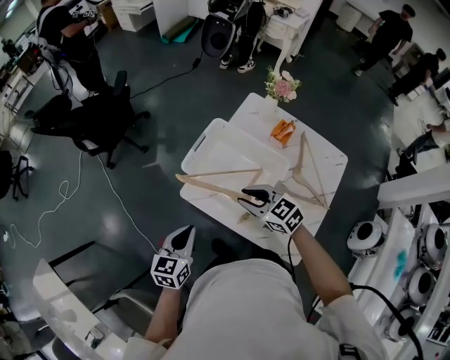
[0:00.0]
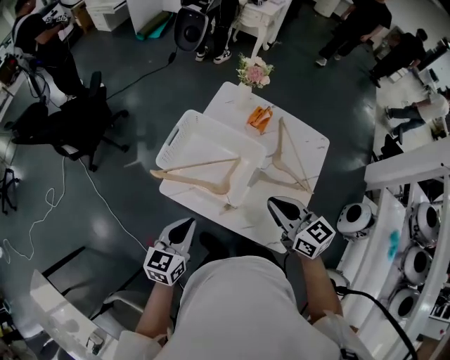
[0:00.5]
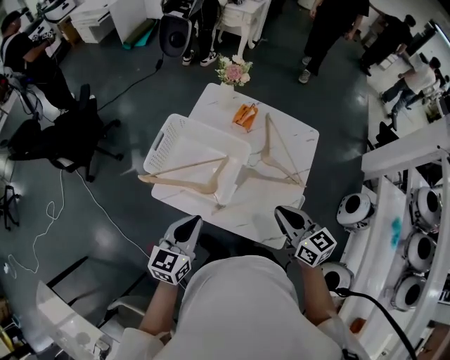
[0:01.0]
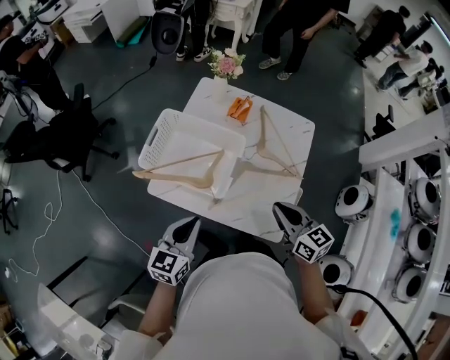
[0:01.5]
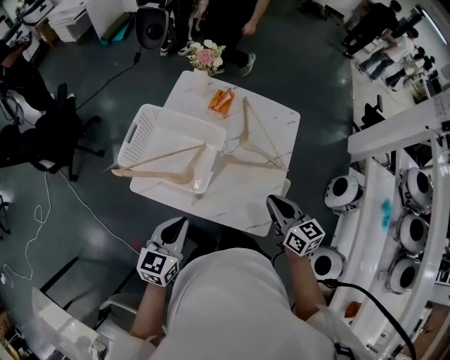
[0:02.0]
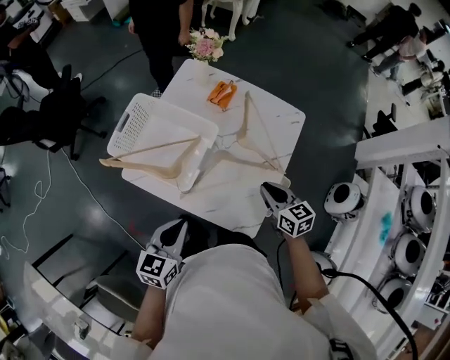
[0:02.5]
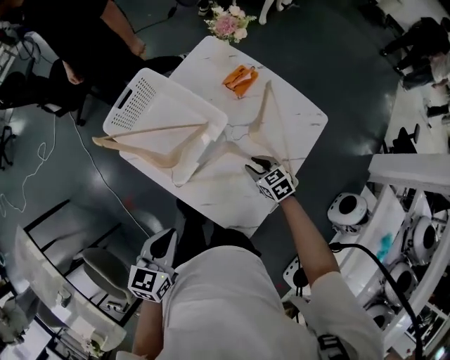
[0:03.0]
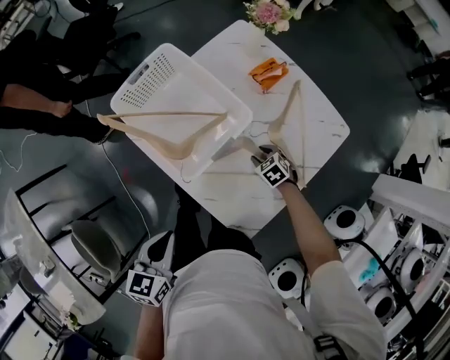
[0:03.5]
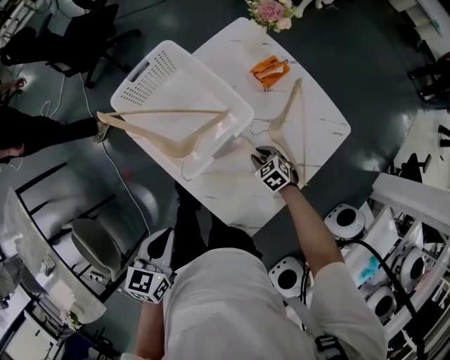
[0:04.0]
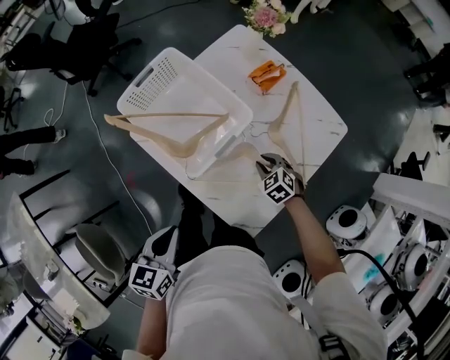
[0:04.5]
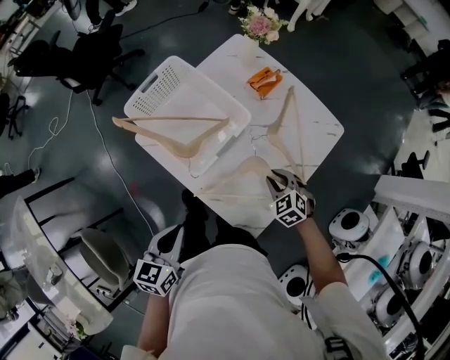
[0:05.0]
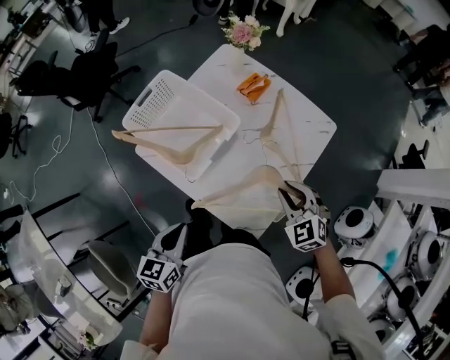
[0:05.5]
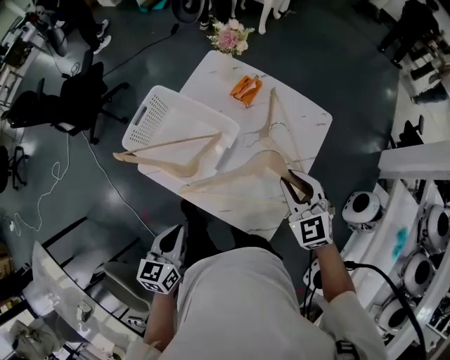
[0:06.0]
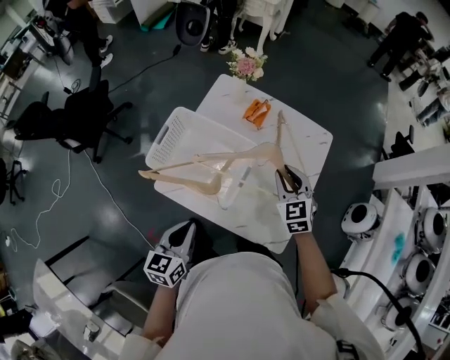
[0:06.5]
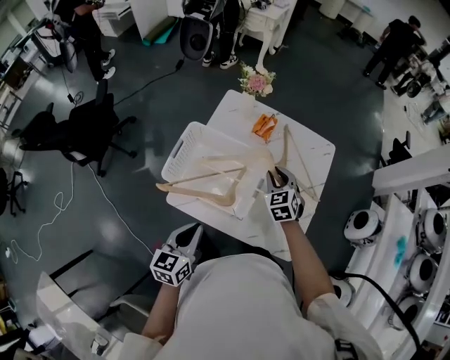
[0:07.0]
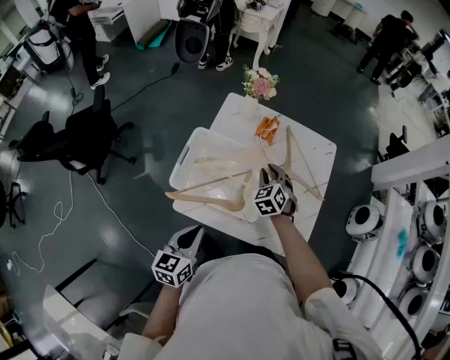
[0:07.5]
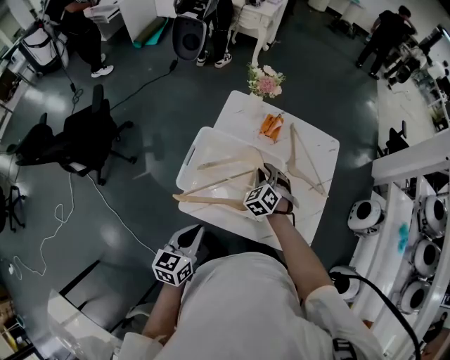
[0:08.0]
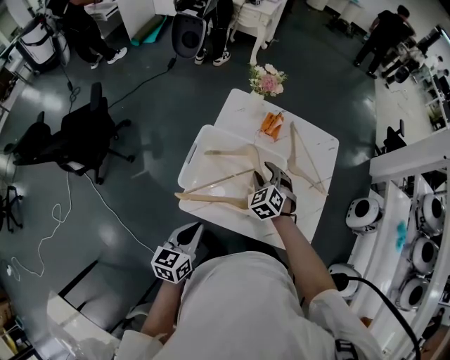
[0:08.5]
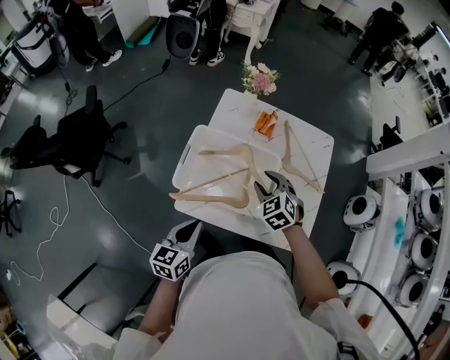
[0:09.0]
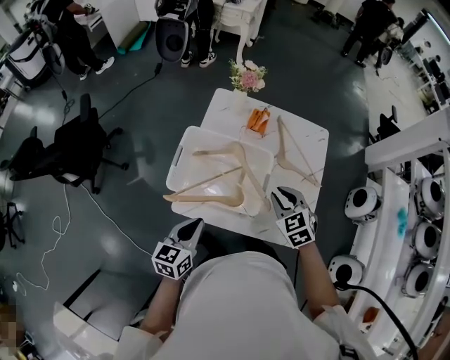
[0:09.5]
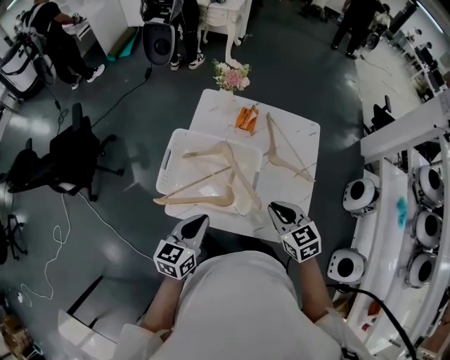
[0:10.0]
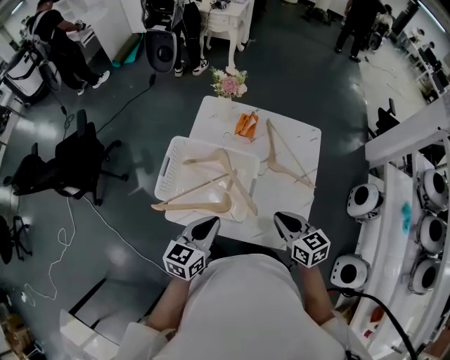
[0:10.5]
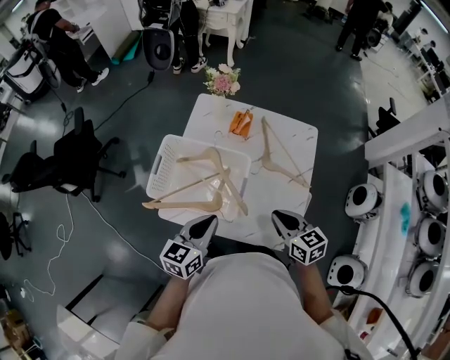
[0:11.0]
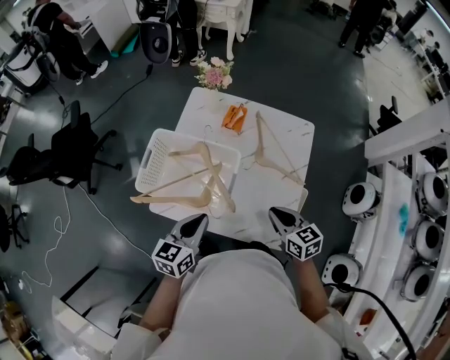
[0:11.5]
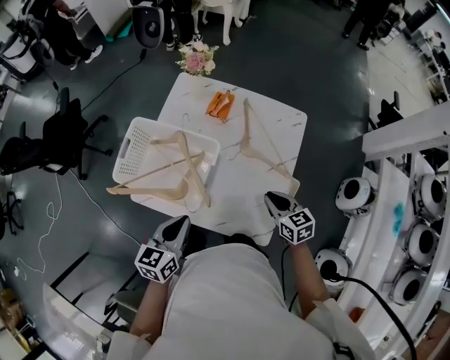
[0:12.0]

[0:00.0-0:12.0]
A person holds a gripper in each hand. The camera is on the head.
0:00.0 to 0:02.0: The right gripper moves about 10 cm upward and comes back, rotates approximately 50 degrees, and closes up. Meanwhile the left gripper moves roughly 15 cm, and swivels about 20 degrees.
0:02.0 to 0:04.0: The right gripper shifts some 30 cm downward, and tilts its fingers about 40 degrees downward; the left gripper ends up about 10 cm from where it was, and swivels approximately 40 degrees.
0:04.0 to 0:06.0: The right gripper shifts approximately 30 cm upward, and points its fingers approximately 30 degrees further upward. The left gripper shifts by some 5 cm.
0:06.0 to 0:08.0: The right gripper shifts by about 30 cm, and turns by some 40 degrees. Meanwhile the left gripper ends up approximately 20 cm from where it was.
0:08.0 to 0:10.0: The right gripper heads backward, upward and to the right, covering approximately 20 cm, and rotates approximately 40 degrees; the left gripper shifts some 5 cm to the right.
0:10.0 to 0:12.0: The left gripper travels to the right by some 10 cm; the right gripper goes about 20 cm to the right and downward.

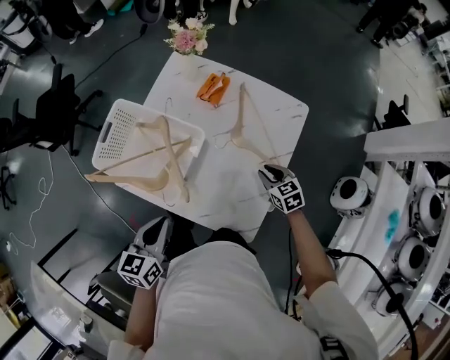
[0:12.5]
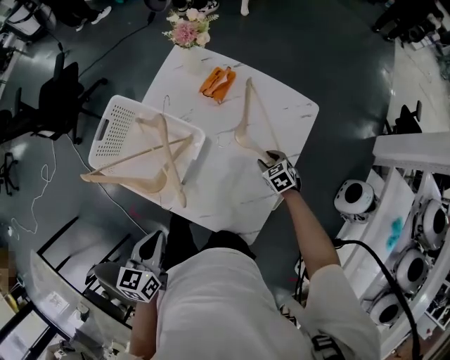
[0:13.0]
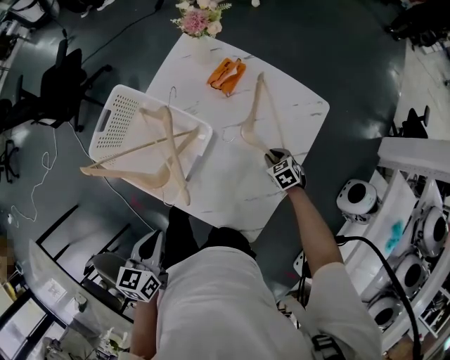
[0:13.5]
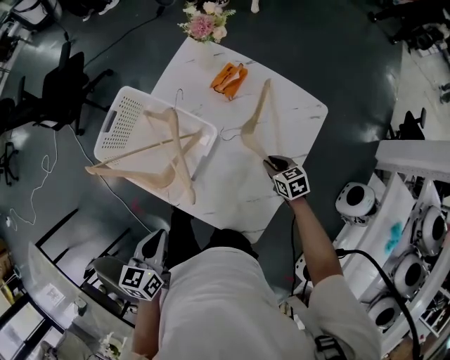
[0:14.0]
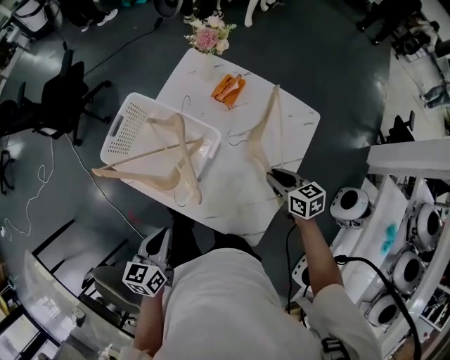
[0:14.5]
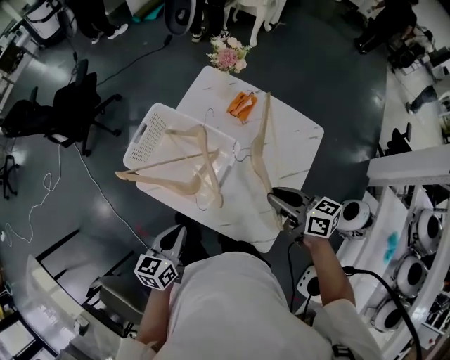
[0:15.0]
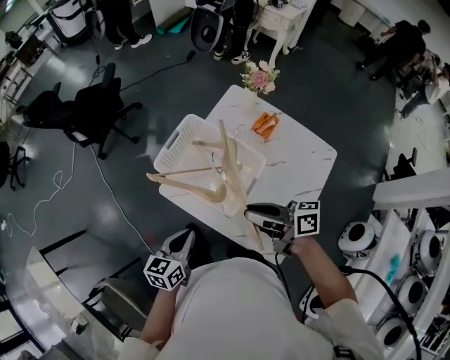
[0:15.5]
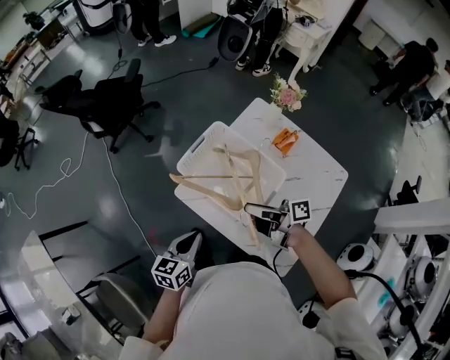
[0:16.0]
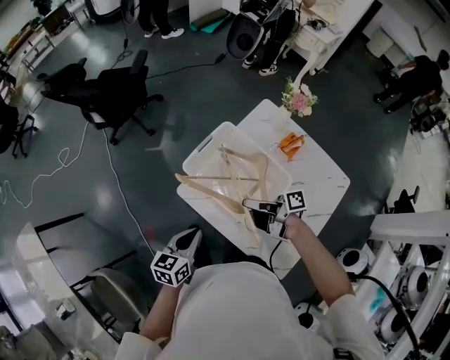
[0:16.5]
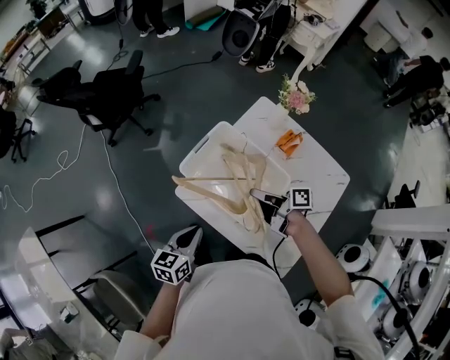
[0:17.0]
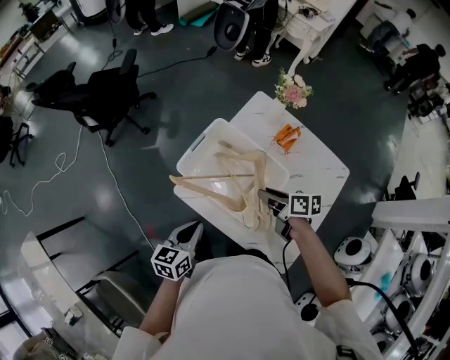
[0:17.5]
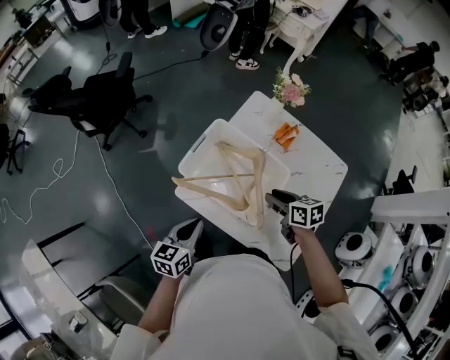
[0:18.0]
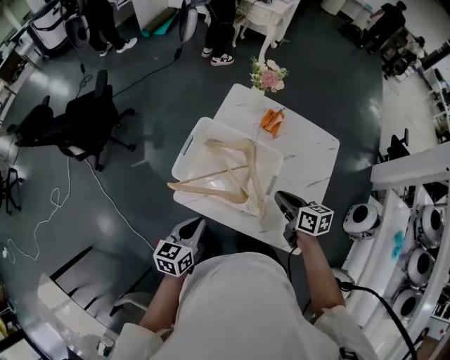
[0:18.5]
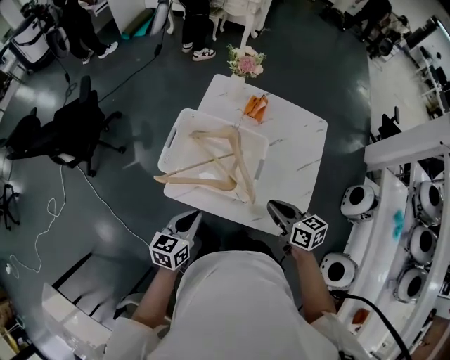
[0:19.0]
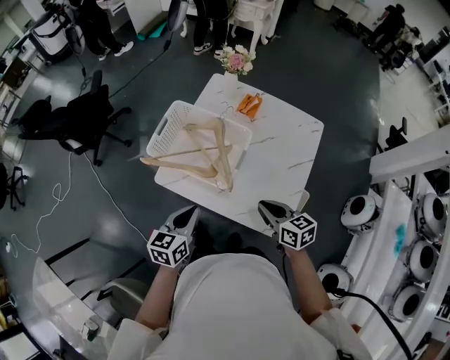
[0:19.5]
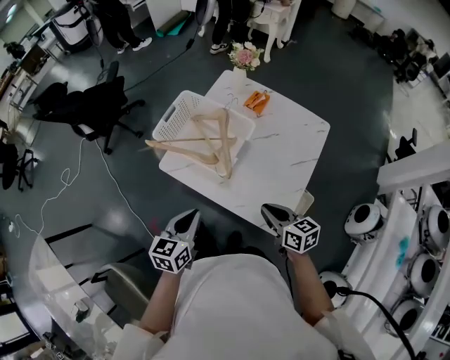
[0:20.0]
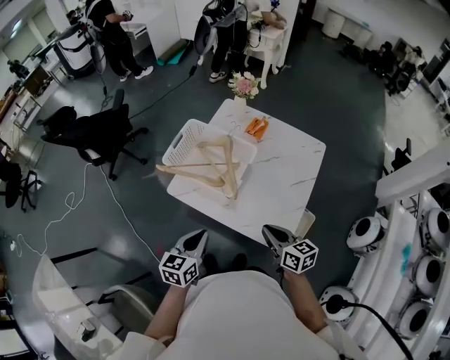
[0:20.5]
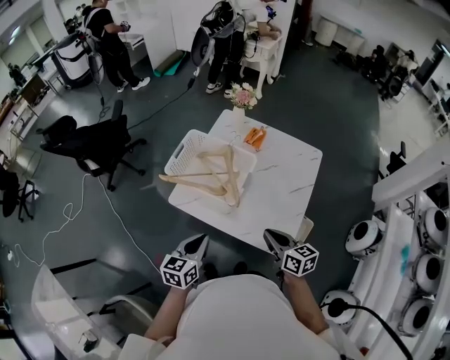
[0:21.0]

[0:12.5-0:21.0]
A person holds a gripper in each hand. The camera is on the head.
0:12.5 to 0:14.5: The right gripper shifts roughly 5 cm upward. The left gripper ends up roughly 5 cm from where it was.
0:14.5 to 0:16.5: The left gripper shifts roughly 15 cm to the left and forward. Meanwhile the right gripper travels to the left by approximately 30 cm, and points its fingers approximately 30 degrees further upward.
0:16.5 to 0:19.0: The right gripper moves roughly 15 cm, and changes its angle by roughly 60 degrees. The left gripper swivels about 30 degrees.
0:19.0 to 0:21.0: The left gripper moves backward and to the right, about 15 cm, while the right gripper travels backward by about 10 cm.

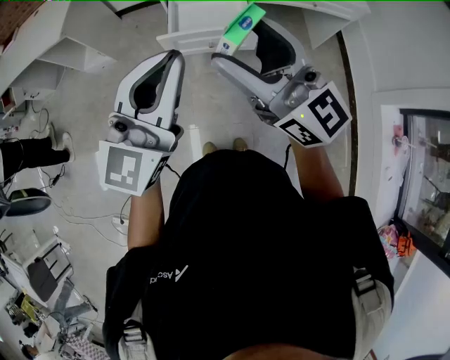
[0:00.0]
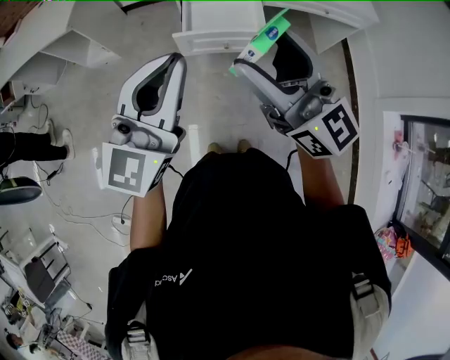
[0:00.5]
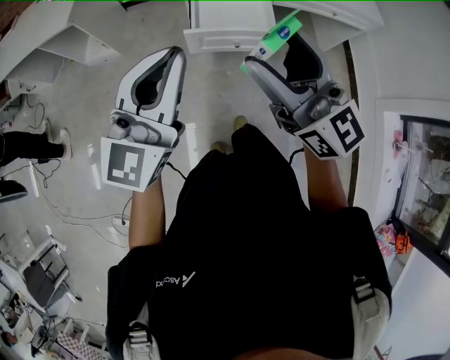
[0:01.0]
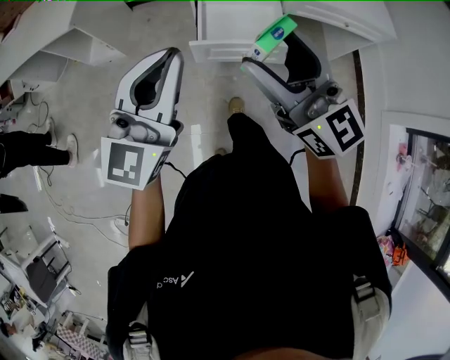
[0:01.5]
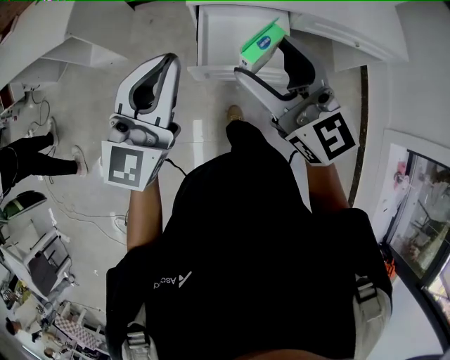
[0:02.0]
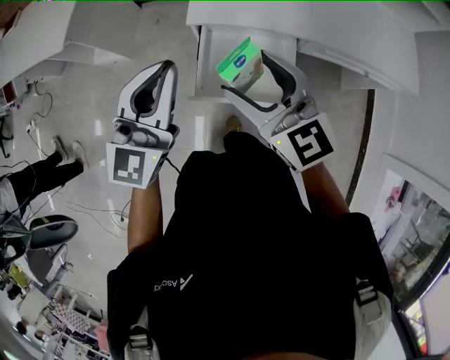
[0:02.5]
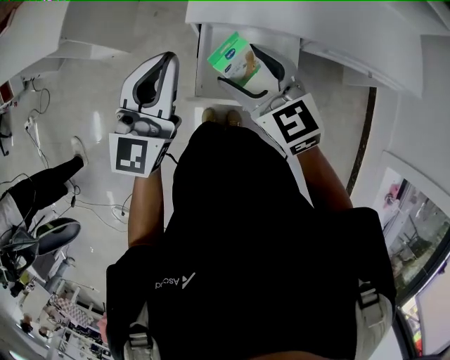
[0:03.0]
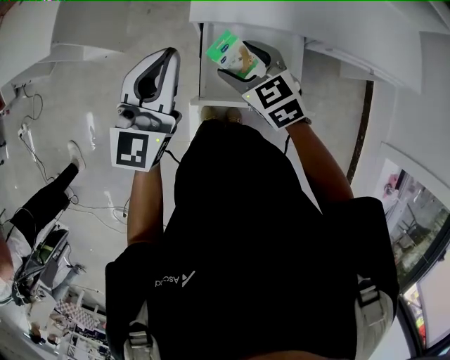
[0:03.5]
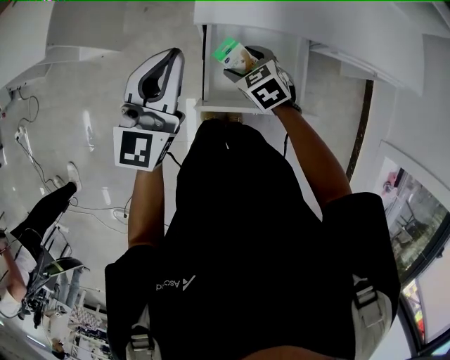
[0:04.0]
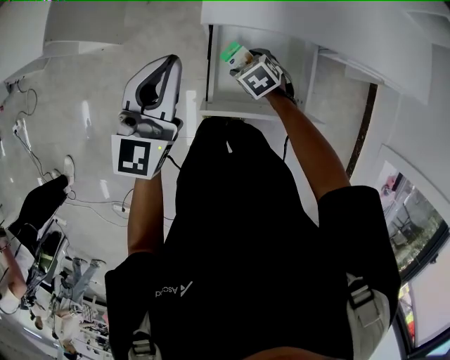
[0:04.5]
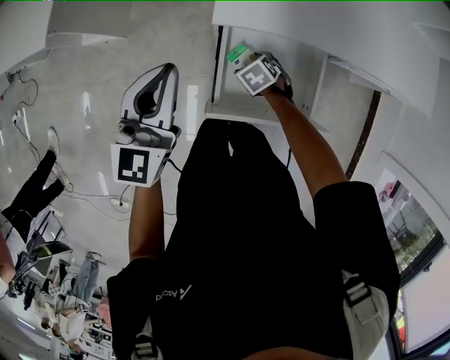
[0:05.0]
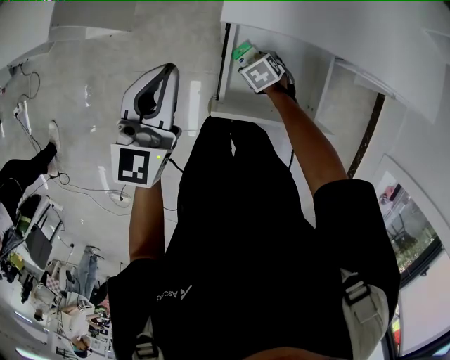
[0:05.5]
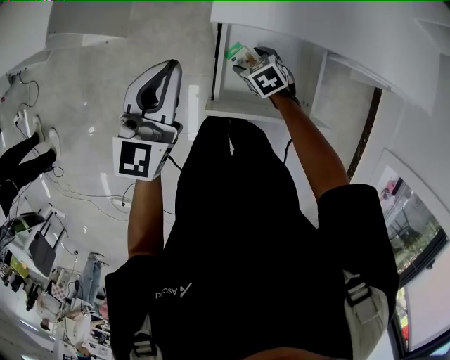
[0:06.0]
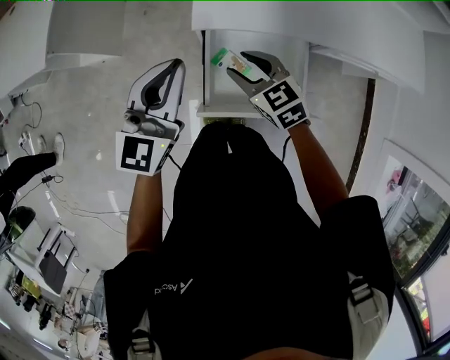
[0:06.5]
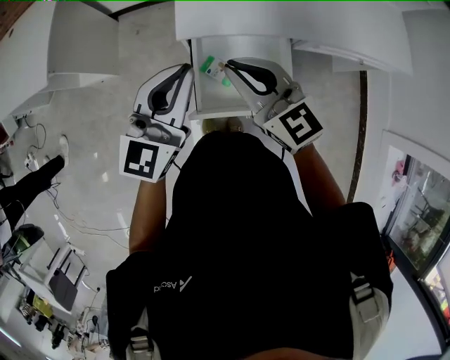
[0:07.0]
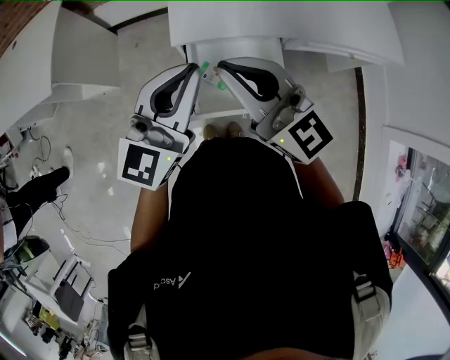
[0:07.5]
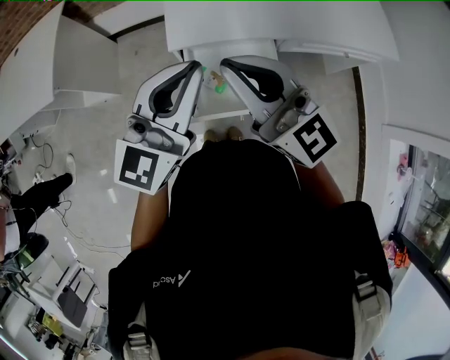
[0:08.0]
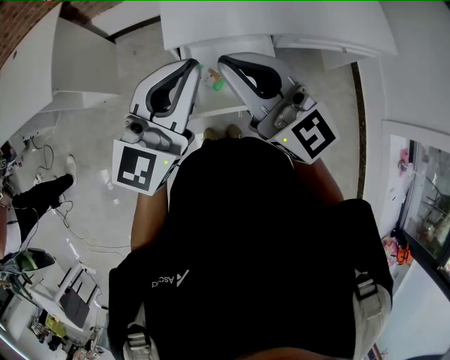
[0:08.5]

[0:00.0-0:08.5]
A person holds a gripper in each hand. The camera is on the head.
0:00.0 to 0:02.0: The right gripper is displaced forward by some 25 cm. The left gripper travels forward and to the left by some 30 cm.
0:02.0 to 0:04.0: The left gripper heads forward and downward, covering roughly 30 cm. The right gripper is displaced downward and forward by about 40 cm, and angles its fingers downward, by roughly 60 degrees.
0:04.0 to 0:06.5: The right gripper reaches roughly 15 cm downward, then returns, and closes.
0:06.5 to 0:08.5: The right gripper is displaced upward by approximately 30 cm, points its fingers approximately 50 degrees further upward, and closes. The left gripper moves upward, to the right and backward, some 20 cm.
